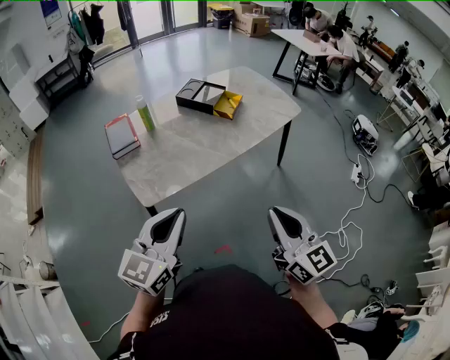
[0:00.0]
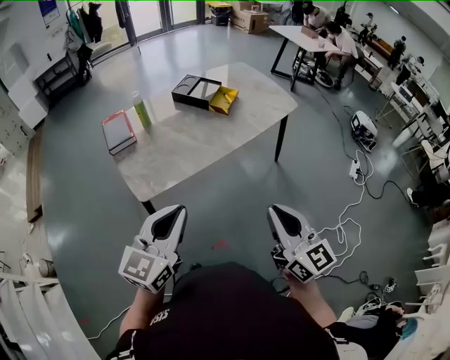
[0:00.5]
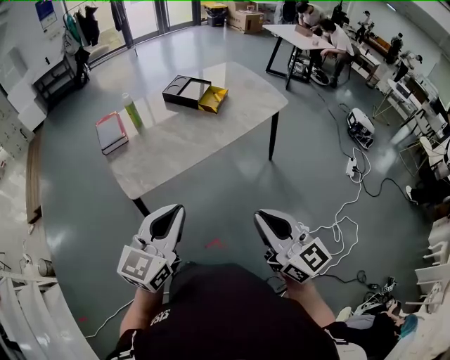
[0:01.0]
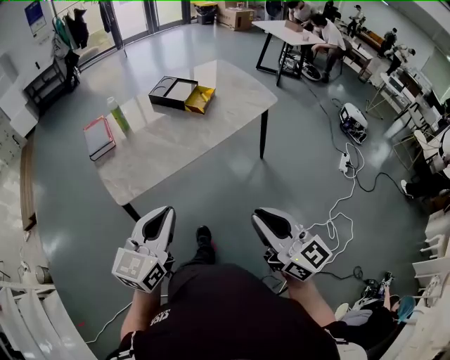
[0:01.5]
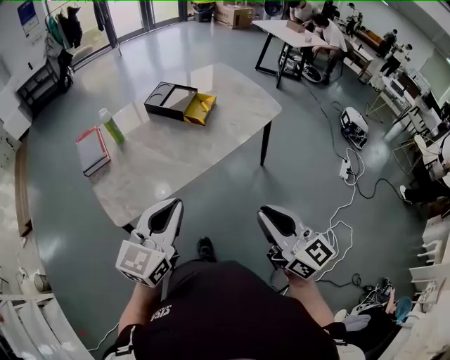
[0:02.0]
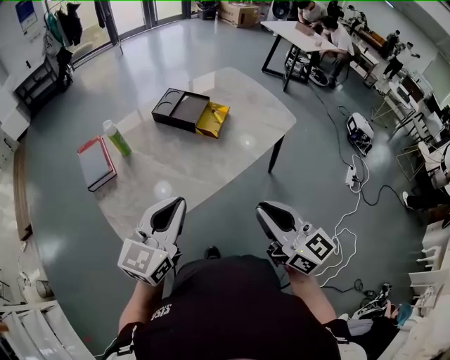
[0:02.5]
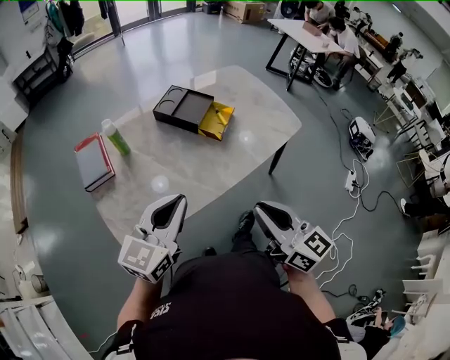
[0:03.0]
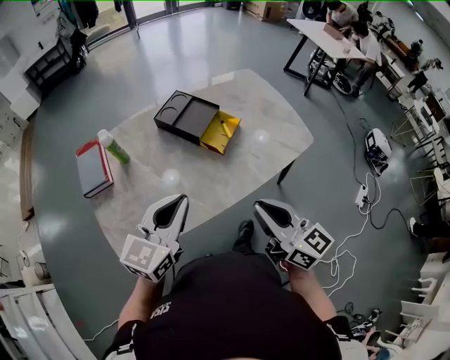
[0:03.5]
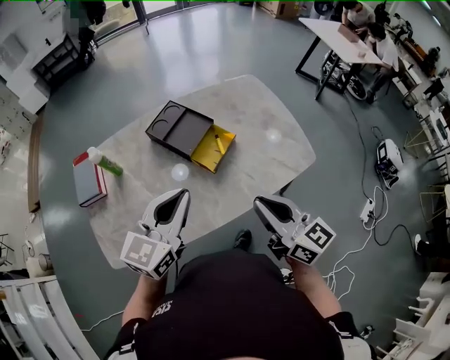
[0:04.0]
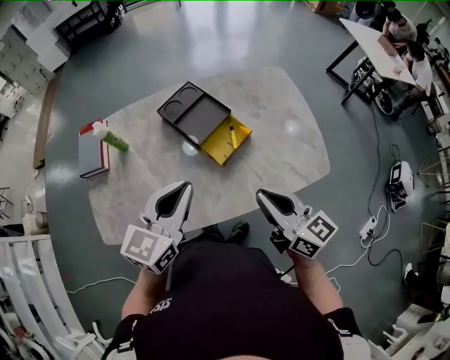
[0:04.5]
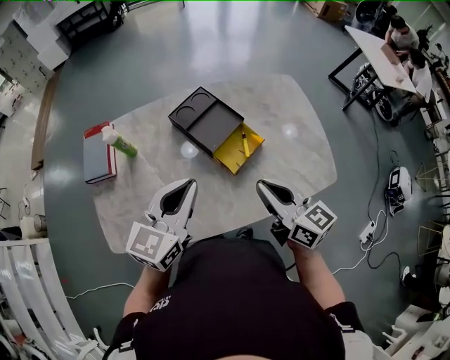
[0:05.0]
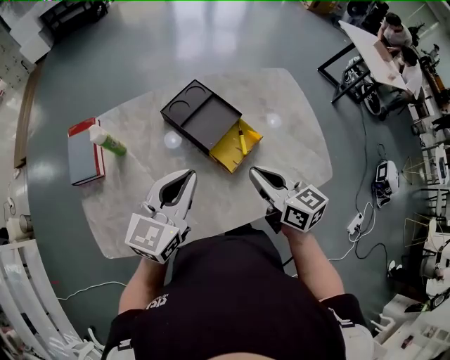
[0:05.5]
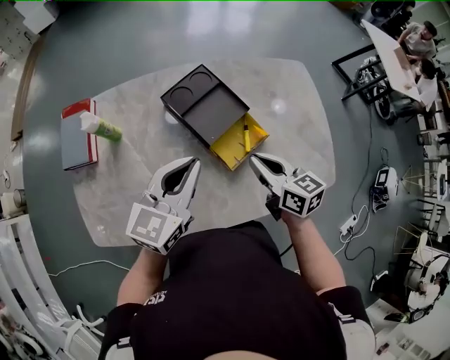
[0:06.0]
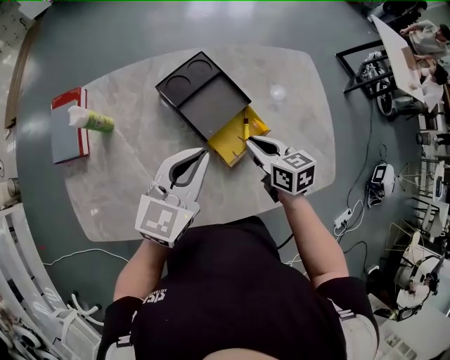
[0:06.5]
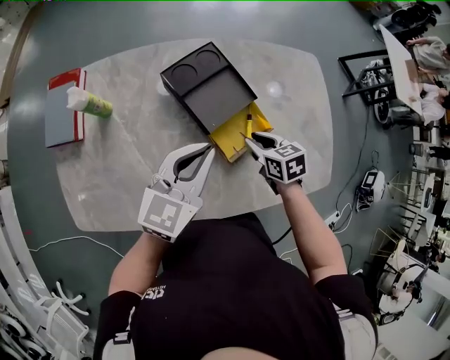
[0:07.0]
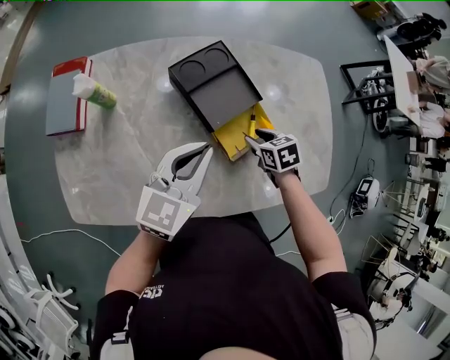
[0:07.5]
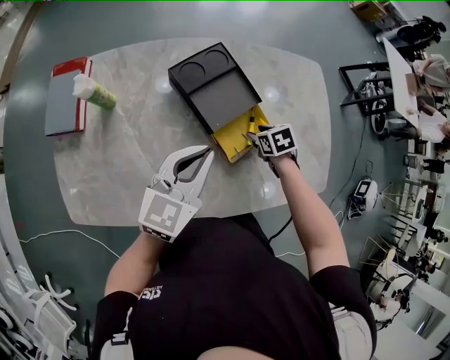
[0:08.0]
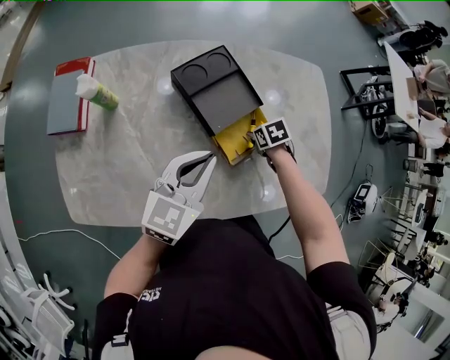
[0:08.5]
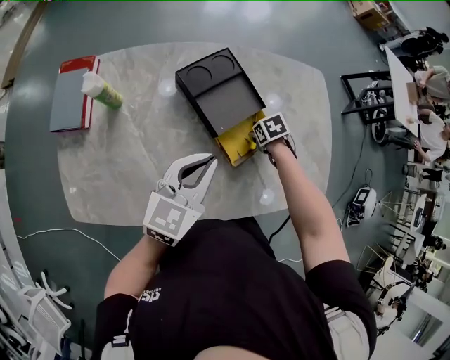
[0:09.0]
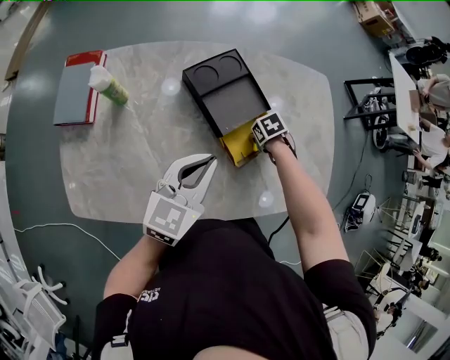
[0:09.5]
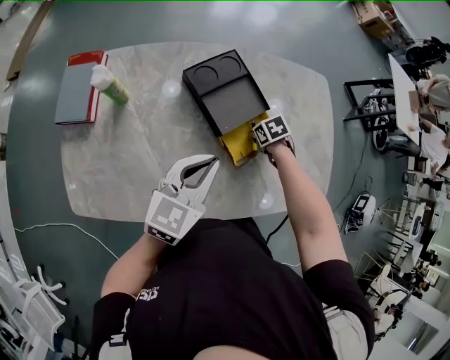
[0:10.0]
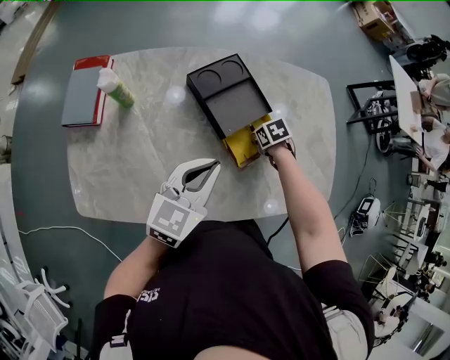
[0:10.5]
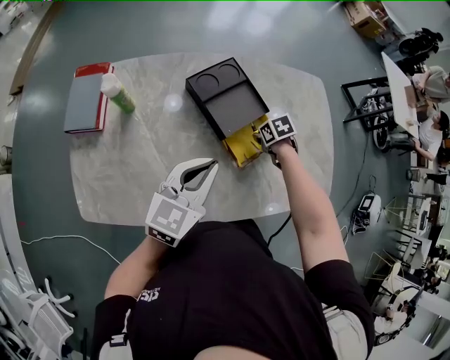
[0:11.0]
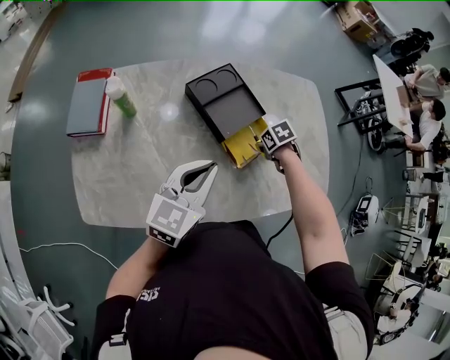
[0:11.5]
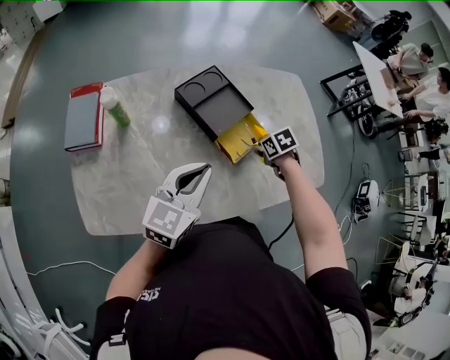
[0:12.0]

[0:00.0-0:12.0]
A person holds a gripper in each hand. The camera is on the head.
0:00.0 to 0:02.0: The two grippers go about 15 cm to the right and forward.
0:02.0 to 0:04.0: Both grippers travel together forward, approximately 35 cm.
0:04.0 to 0:06.0: Both grippers move forward and downward, approximately 25 cm. The right gripper rotates some 30 degrees.
0:06.0 to 0:08.0: The left gripper moves approximately 5 cm; the right gripper travels downward and forward by approximately 20 cm, angles its fingers downward, by some 50 degrees, and opens its fingers.
0:08.0 to 0:10.0: The right gripper moves approximately 5 cm, and closes its fingers.
0:10.0 to 0:12.0: The right gripper goes some 10 cm upward; the left gripper changes place by about 10 cm.

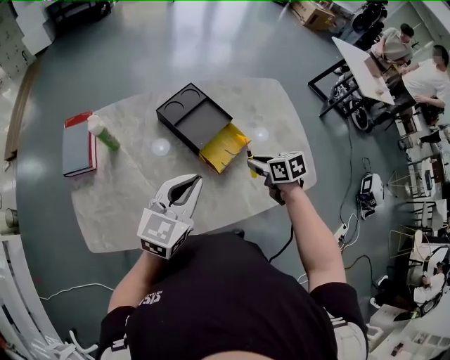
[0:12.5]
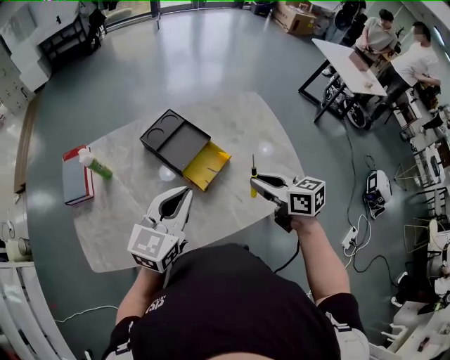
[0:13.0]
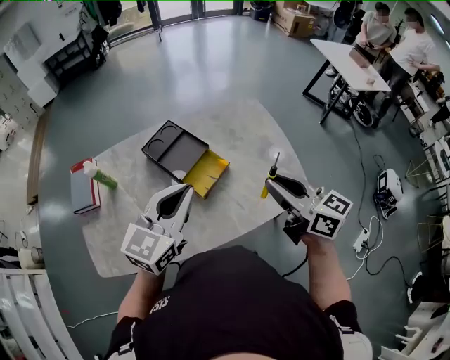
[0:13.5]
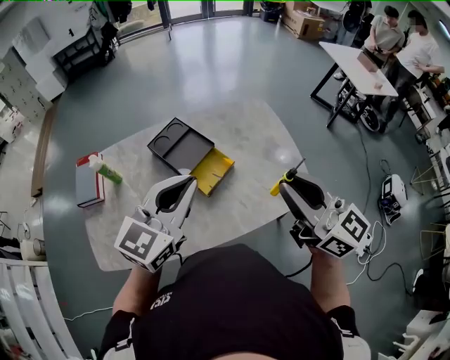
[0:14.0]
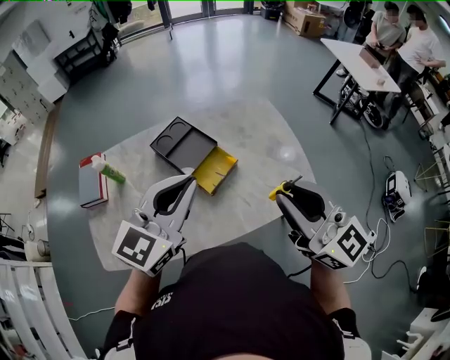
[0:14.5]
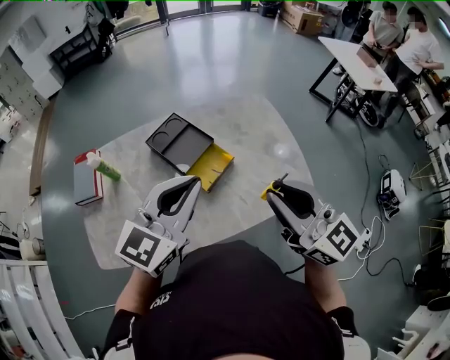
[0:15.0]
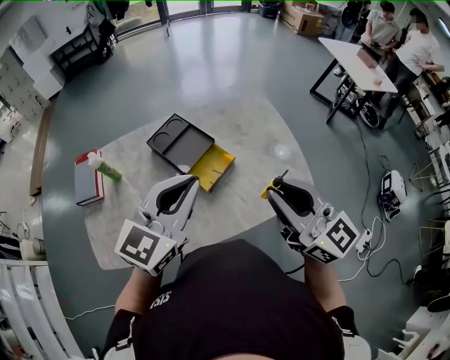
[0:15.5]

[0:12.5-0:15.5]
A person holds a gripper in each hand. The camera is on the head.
0:12.5 to 0:14.0: The left gripper travels upward and to the right by roughly 15 cm; the right gripper is displaced upward by roughly 35 cm, and angles its fingers upward, by roughly 60 degrees.
0:14.0 to 0:15.5: The grippers move only a little.

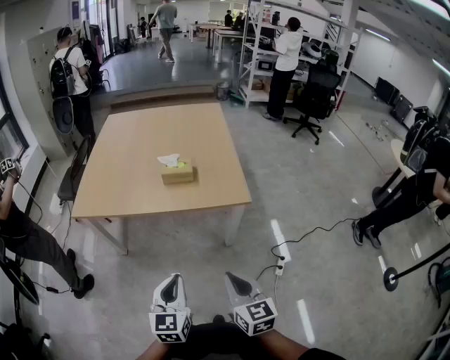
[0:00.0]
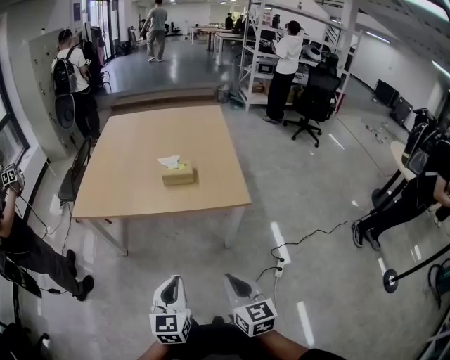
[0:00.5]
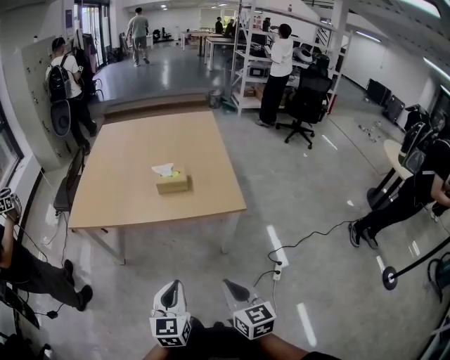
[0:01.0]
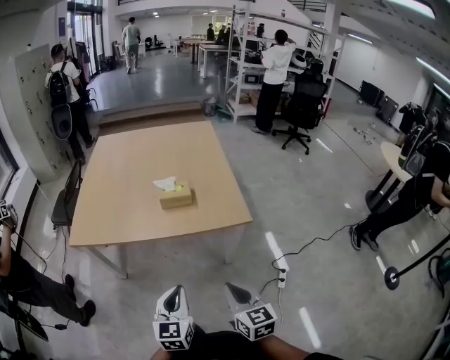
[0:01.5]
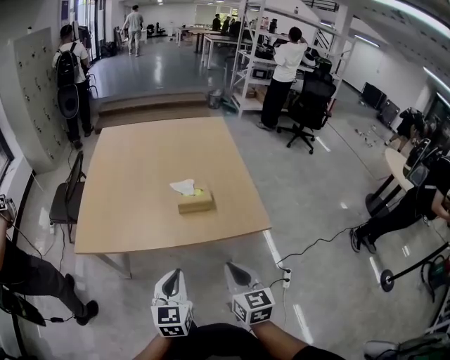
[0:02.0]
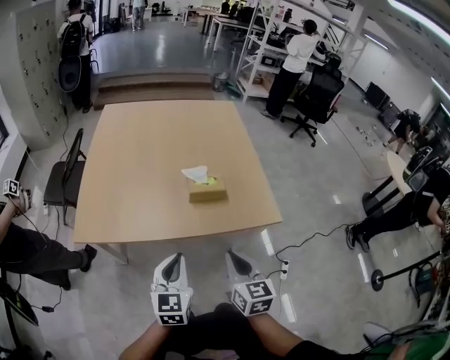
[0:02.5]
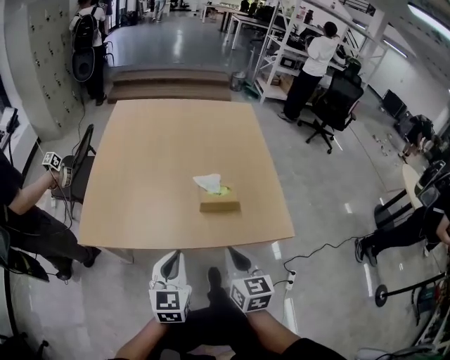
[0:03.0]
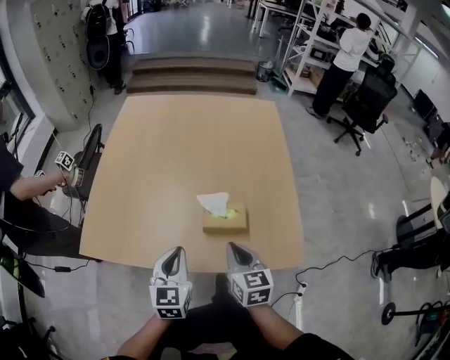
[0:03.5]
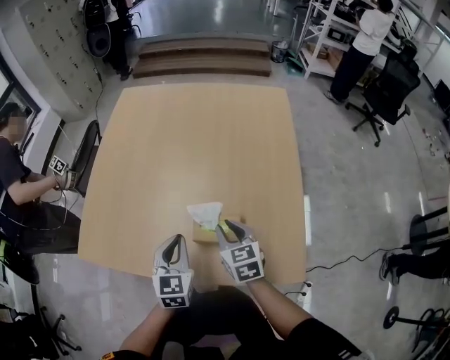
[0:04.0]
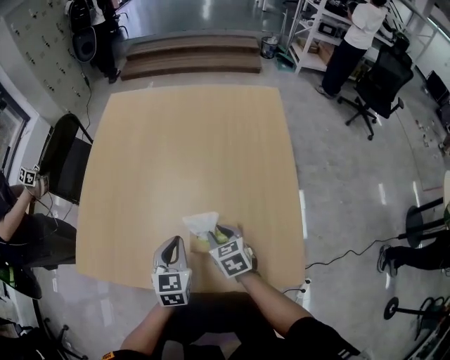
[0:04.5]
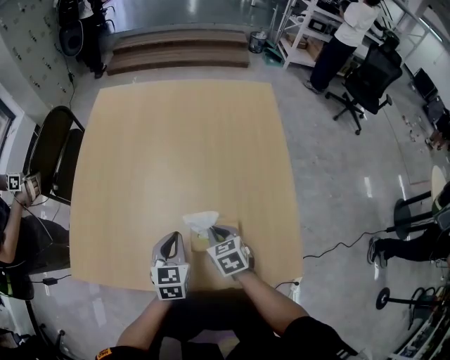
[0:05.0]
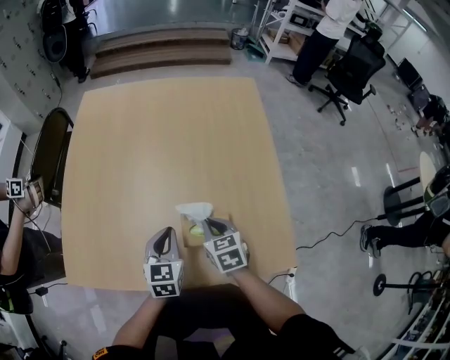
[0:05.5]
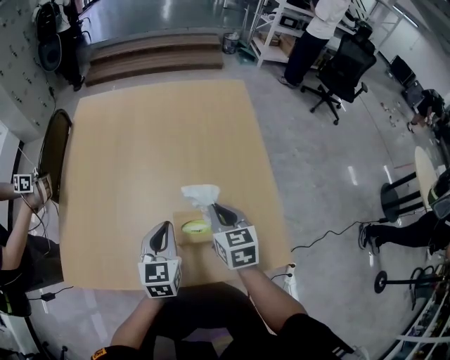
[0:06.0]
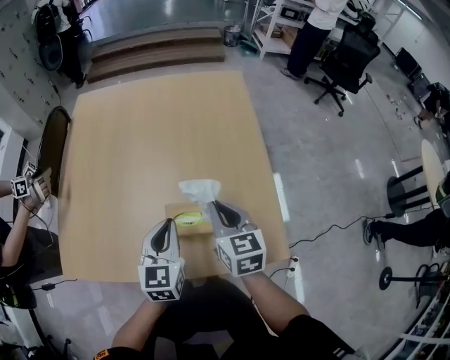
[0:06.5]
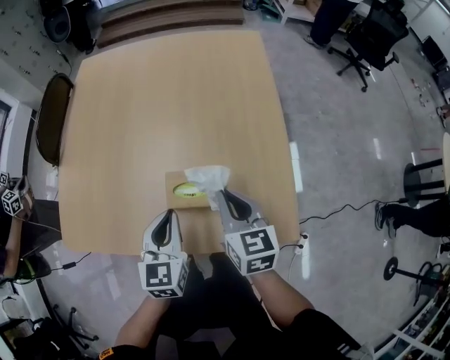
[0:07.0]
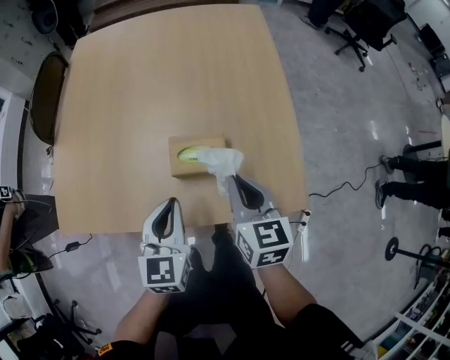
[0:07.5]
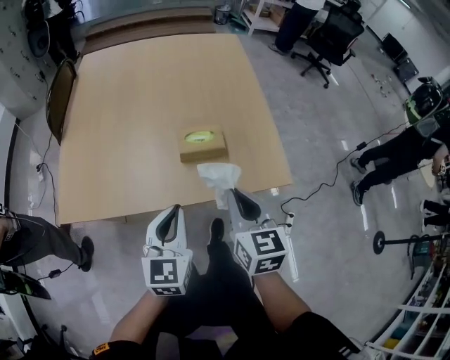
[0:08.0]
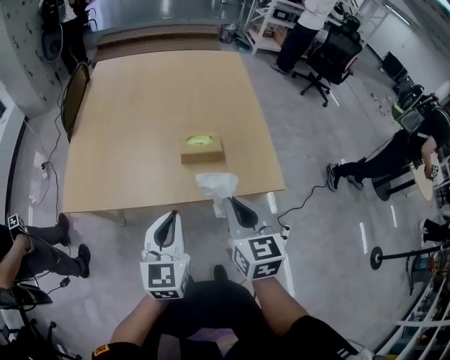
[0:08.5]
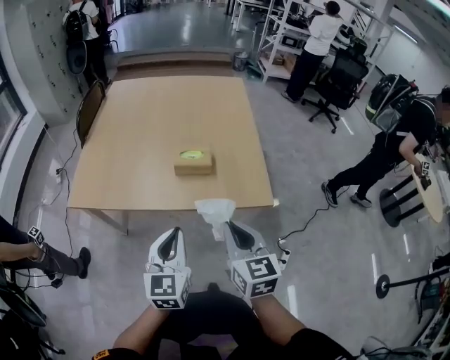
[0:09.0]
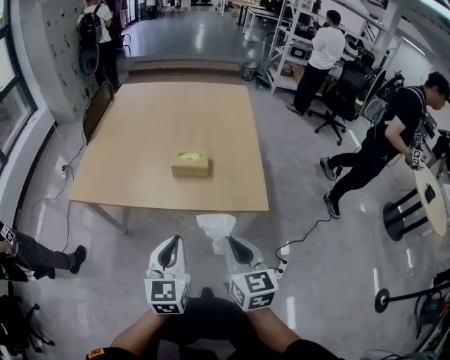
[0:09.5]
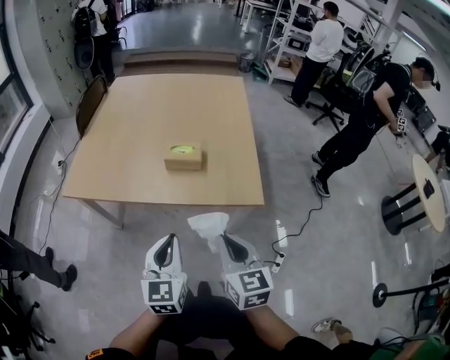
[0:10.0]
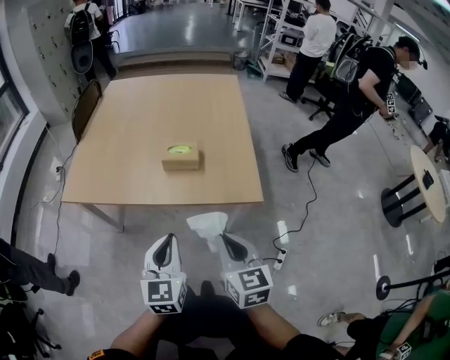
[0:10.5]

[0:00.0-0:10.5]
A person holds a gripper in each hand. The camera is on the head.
0:00.0 to 0:02.0: Both grippers move forward and to the left, approximately 20 cm.
0:02.0 to 0:04.0: The grippers both shift forward by roughly 30 cm. The left gripper rotates approximately 20 degrees, while the right gripper changes its angle by some 30 degrees.
0:04.0 to 0:06.5: The left gripper moves approximately 5 cm, while the right gripper goes about 10 cm upward and to the right.
0:06.5 to 0:08.5: The grippers both shift backward by approximately 25 cm.
0:08.5 to 0:10.5: The two grippers go about 15 cm backward and to the right.

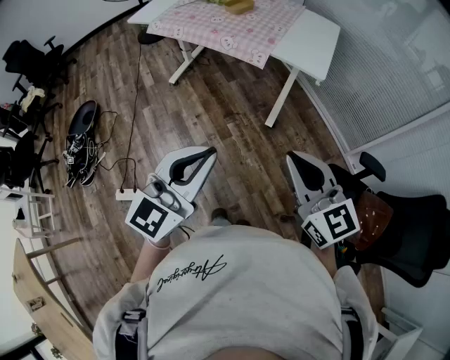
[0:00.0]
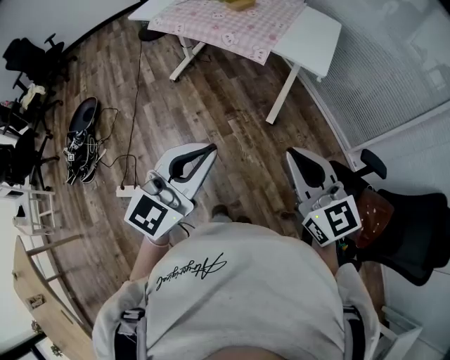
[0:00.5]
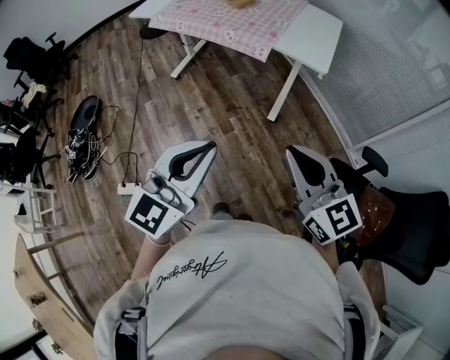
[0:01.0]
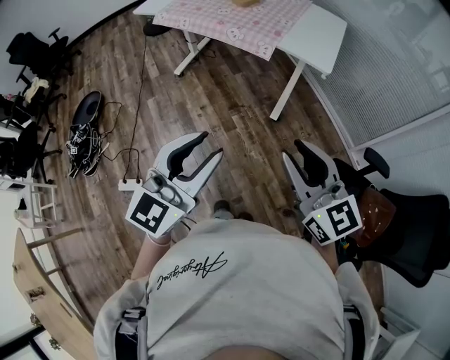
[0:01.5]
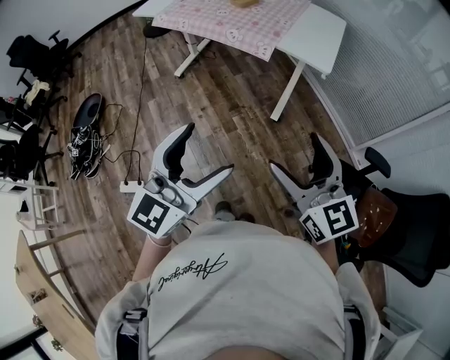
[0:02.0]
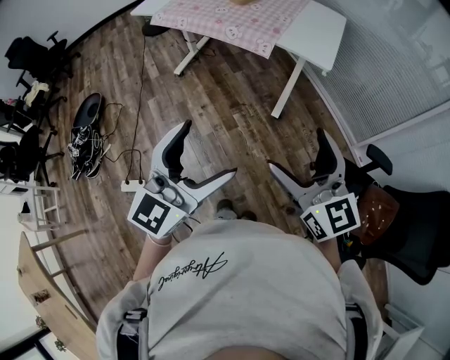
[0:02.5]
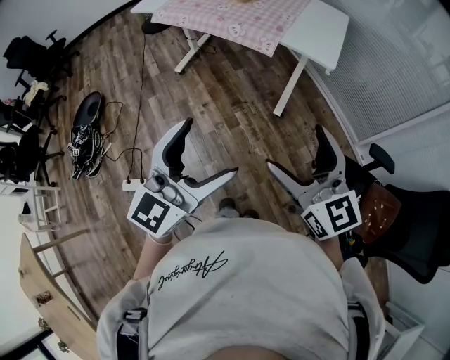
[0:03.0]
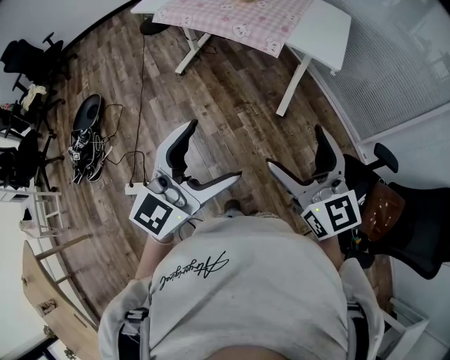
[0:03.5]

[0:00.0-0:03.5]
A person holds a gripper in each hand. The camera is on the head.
0:00.0 to 0:02.0: The left gripper opens its fingers; the right gripper opens.
0:02.0 to 0:03.5: The right gripper moves to the left, some 5 cm.
